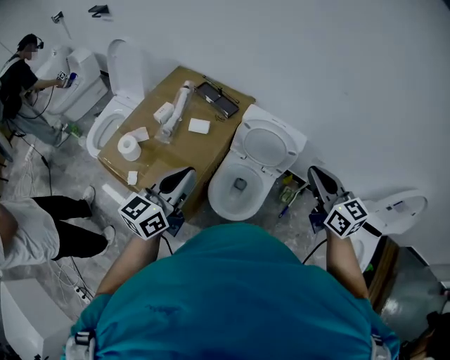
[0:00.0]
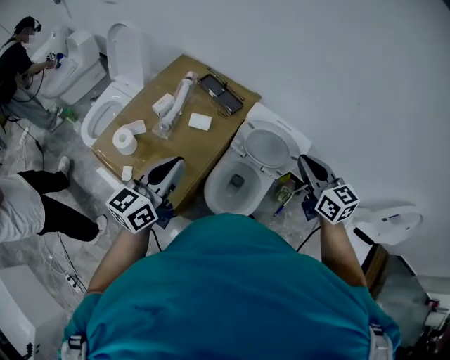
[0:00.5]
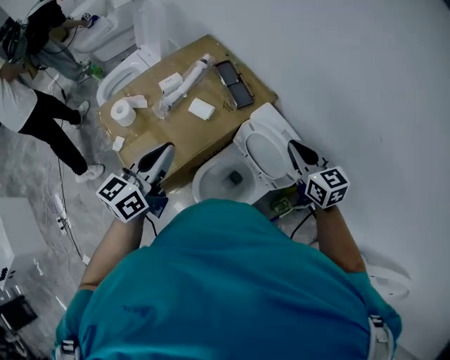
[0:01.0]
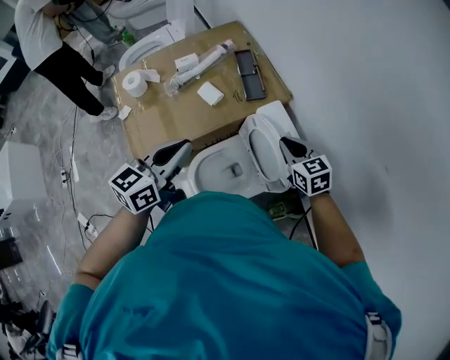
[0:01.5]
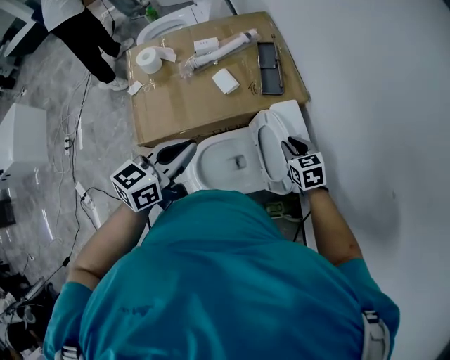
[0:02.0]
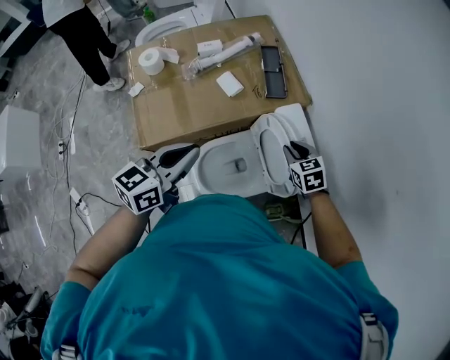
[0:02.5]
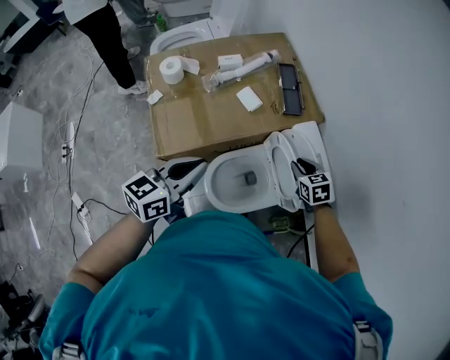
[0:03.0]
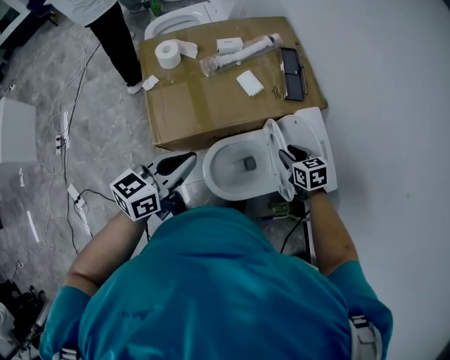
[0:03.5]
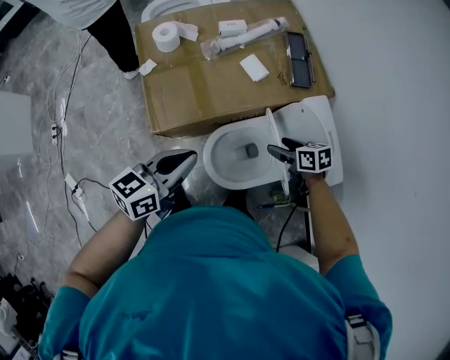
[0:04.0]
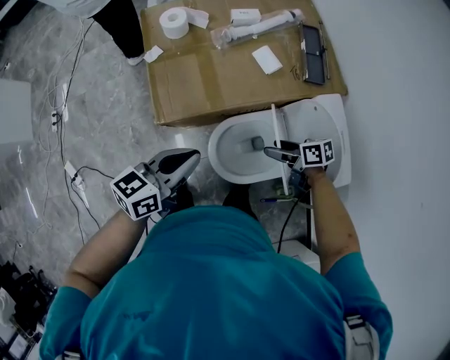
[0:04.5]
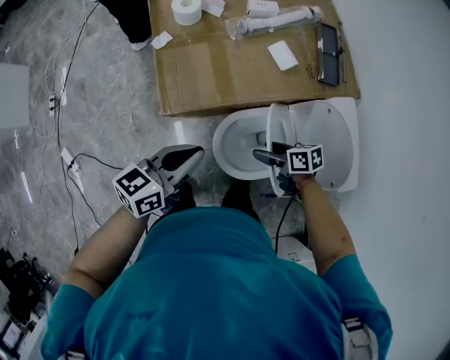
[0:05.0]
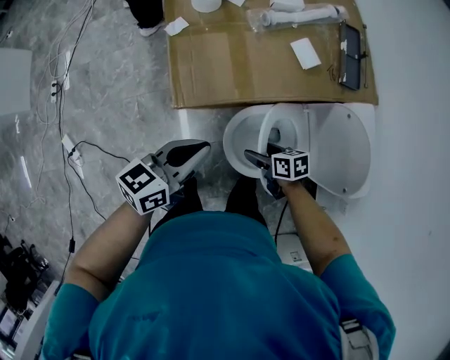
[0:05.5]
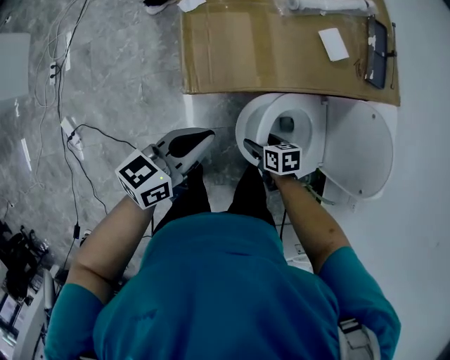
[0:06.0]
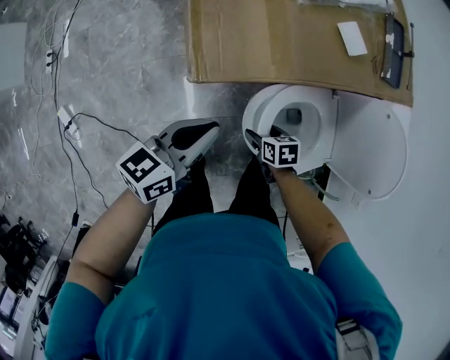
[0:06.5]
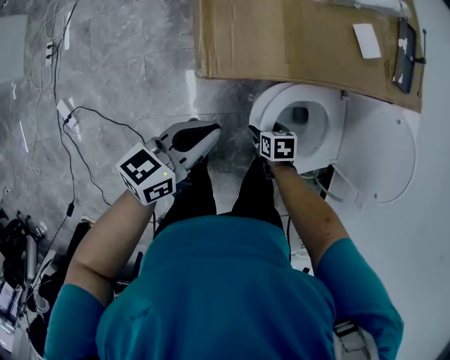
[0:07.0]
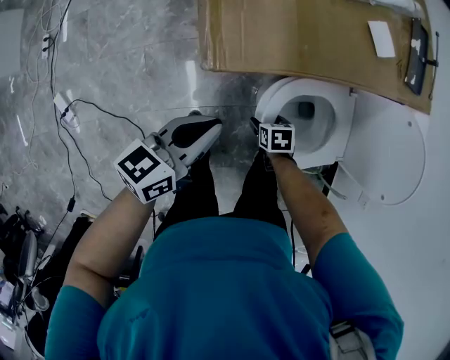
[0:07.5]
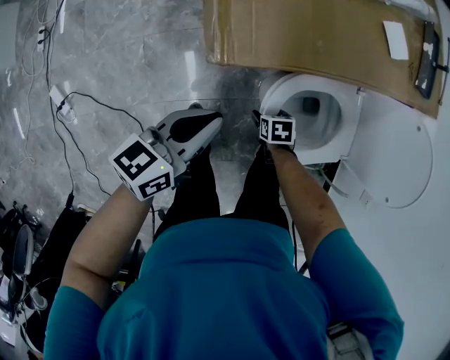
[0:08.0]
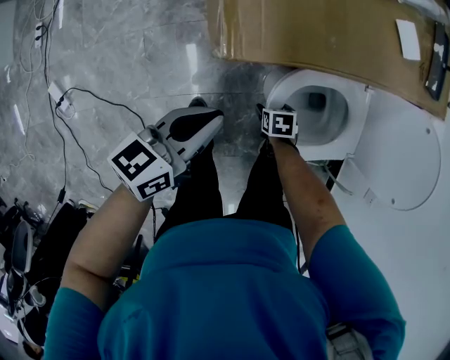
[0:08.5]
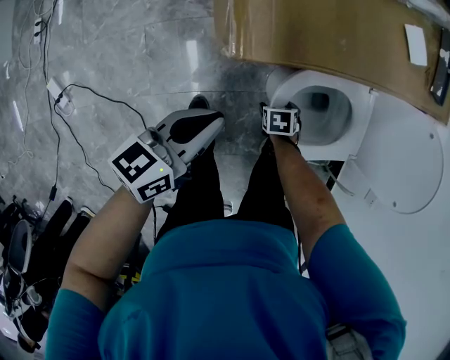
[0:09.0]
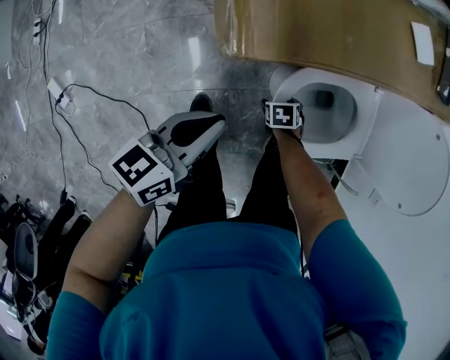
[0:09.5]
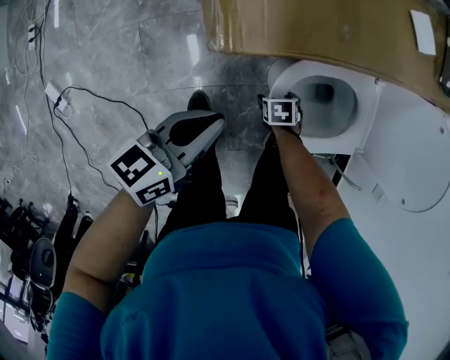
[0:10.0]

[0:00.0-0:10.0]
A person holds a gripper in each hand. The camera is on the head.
0:00.0 to 0:02.0: The right gripper changes place by approximately 50 cm, and tips its fingers downward by about 40 degrees. Meanwhile the left gripper shifts by some 25 cm, and rotates some 40 degrees.
0:02.0 to 0:04.0: Both grippers travel together to the left and downward, roughly 15 cm. The right gripper rotates approximately 30 degrees, and opens its fingers.
0:04.0 to 0:06.0: The left gripper is displaced downward by approximately 15 cm; the right gripper moves some 30 cm.
0:06.0 to 0:08.0: The right gripper is displaced downward by approximately 15 cm, and turns by some 20 degrees; the left gripper goes about 10 cm downward.
0:08.0 to 0:10.0: The grippers both shift downward by about 5 cm.

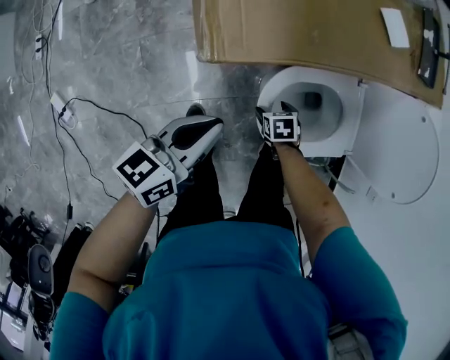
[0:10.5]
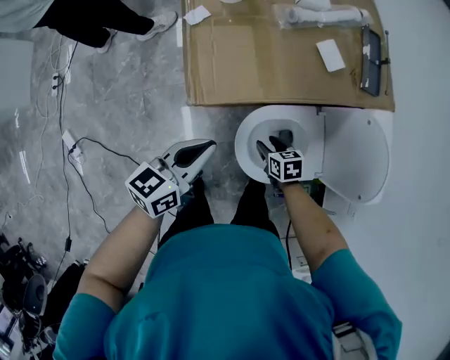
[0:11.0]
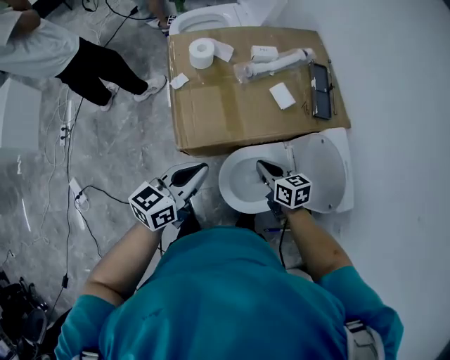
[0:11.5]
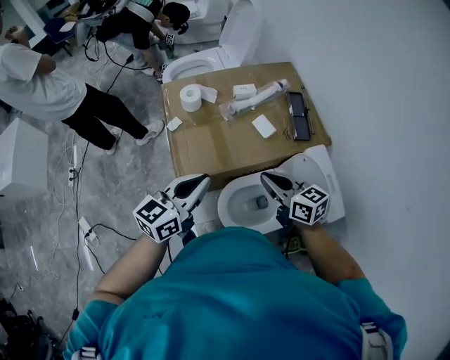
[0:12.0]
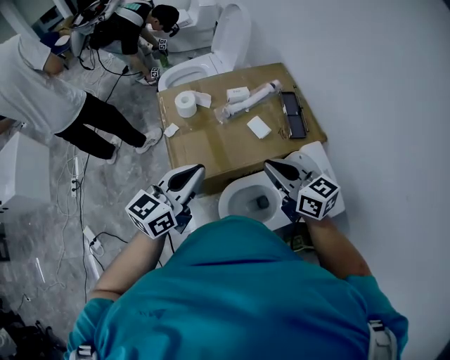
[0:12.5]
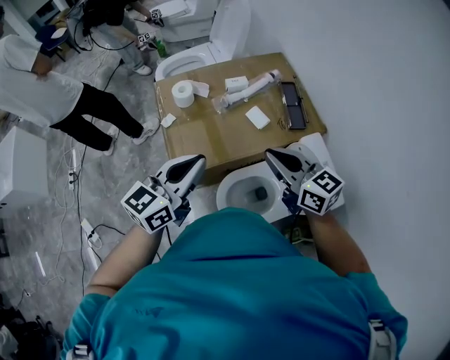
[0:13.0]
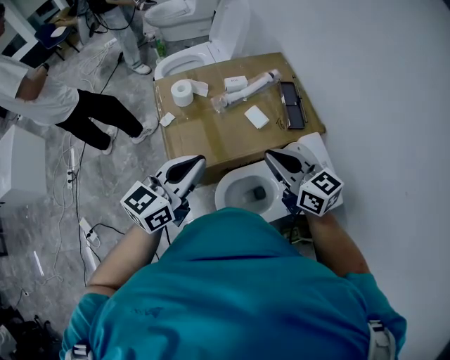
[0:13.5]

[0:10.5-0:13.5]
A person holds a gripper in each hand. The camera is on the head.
0:10.5 to 0:12.0: The right gripper is displaced upward by roughly 60 cm, points its fingers about 60 degrees further upward, and closes its fingers. Meanwhile the left gripper travels upward by about 35 cm, and turns by approximately 30 degrees.
0:12.0 to 0:13.5: The left gripper shifts about 5 cm upward, while the right gripper is displaced upward by some 10 cm.

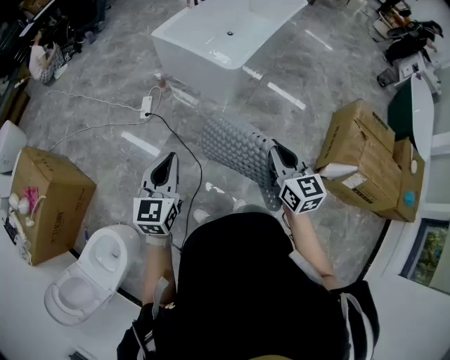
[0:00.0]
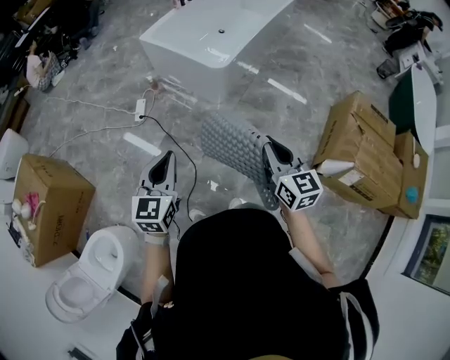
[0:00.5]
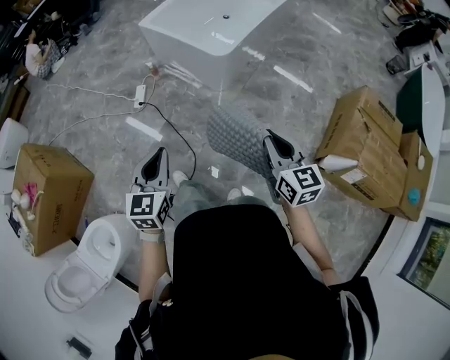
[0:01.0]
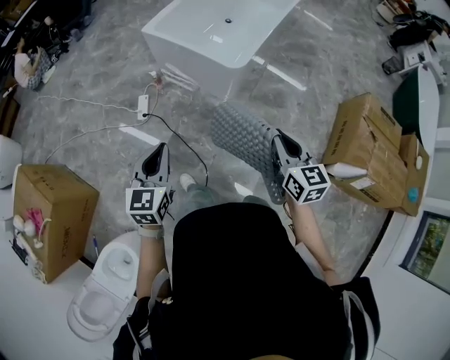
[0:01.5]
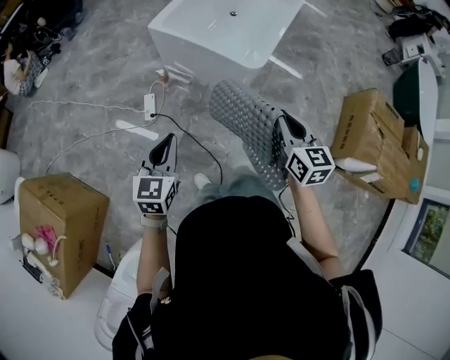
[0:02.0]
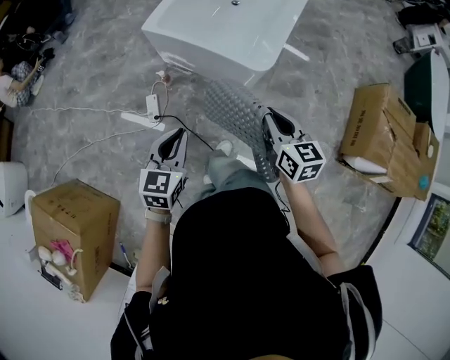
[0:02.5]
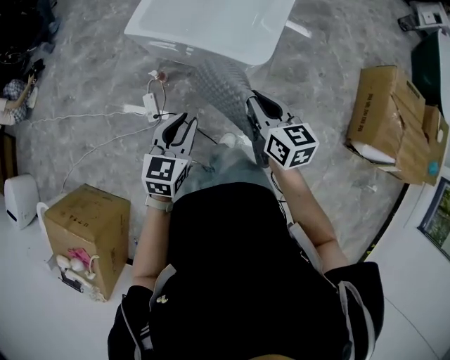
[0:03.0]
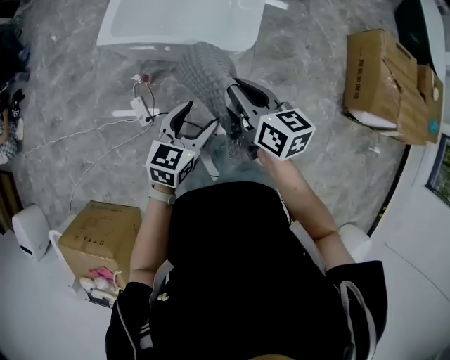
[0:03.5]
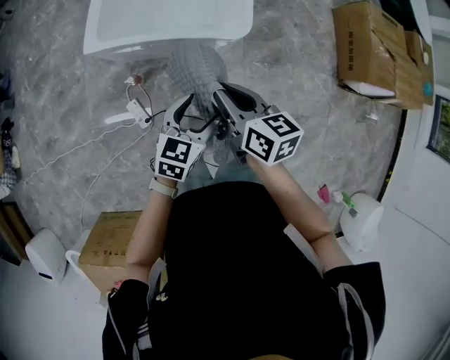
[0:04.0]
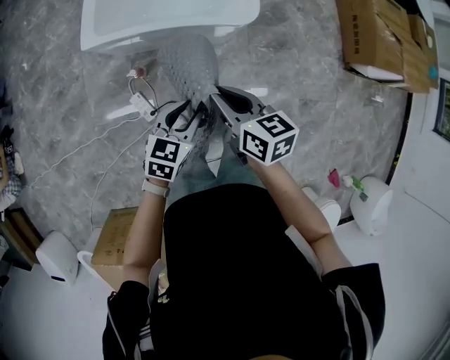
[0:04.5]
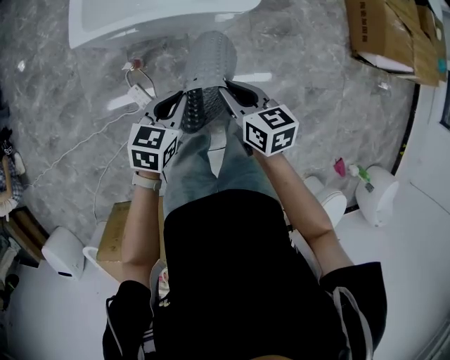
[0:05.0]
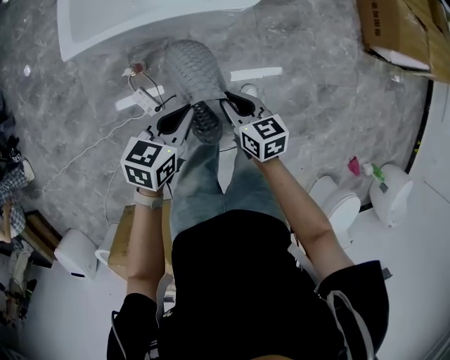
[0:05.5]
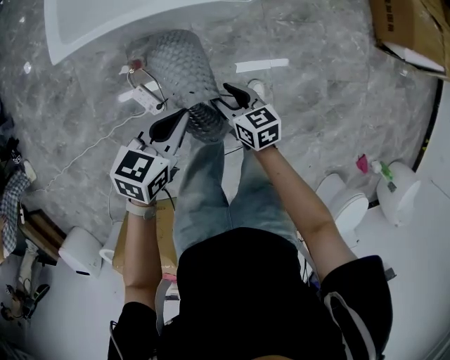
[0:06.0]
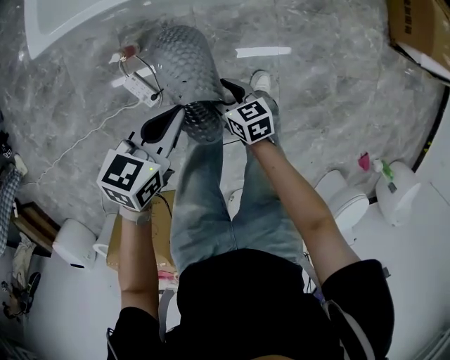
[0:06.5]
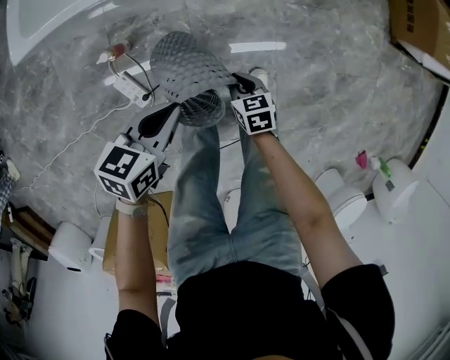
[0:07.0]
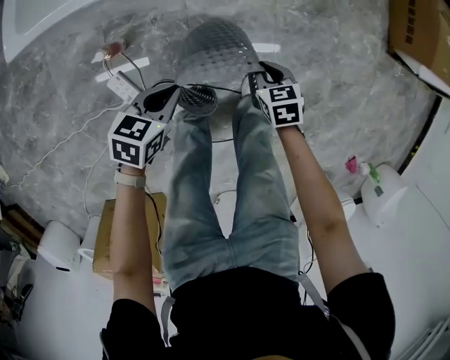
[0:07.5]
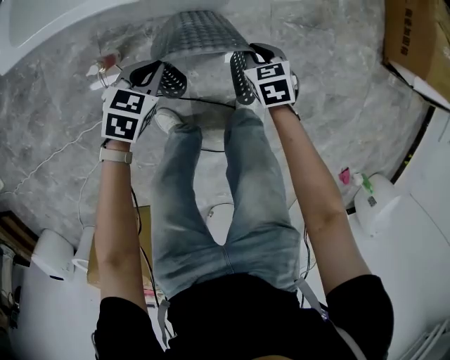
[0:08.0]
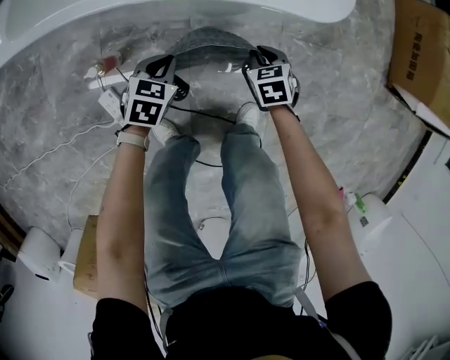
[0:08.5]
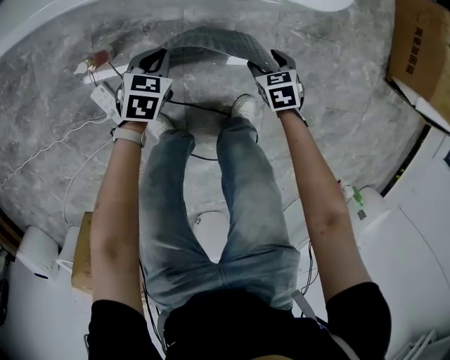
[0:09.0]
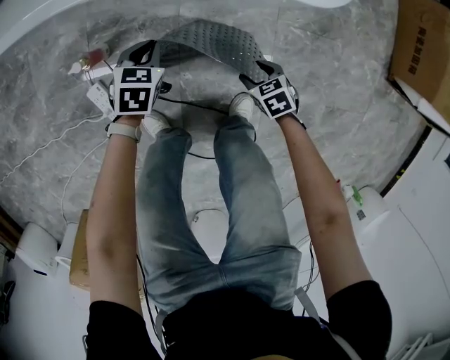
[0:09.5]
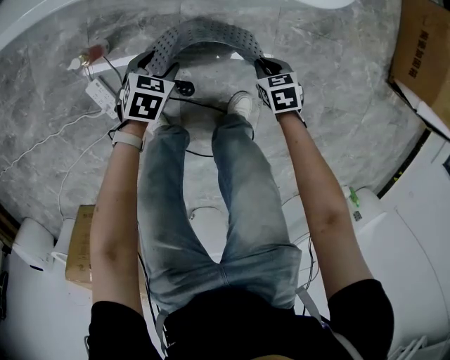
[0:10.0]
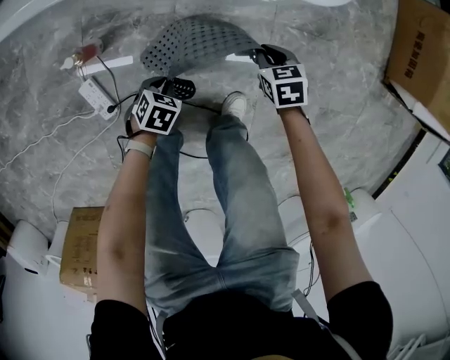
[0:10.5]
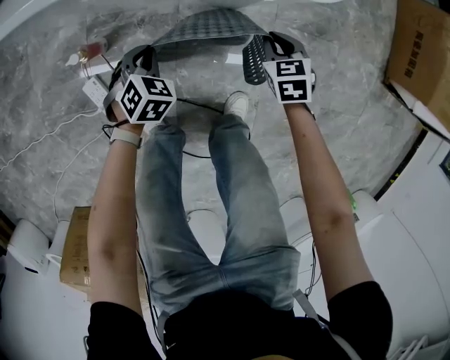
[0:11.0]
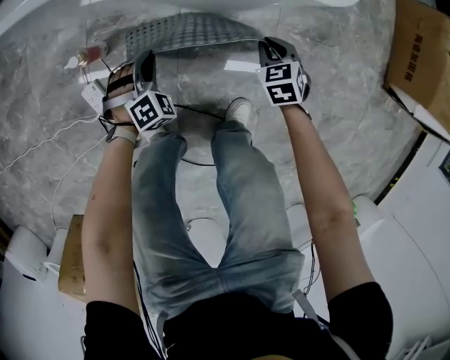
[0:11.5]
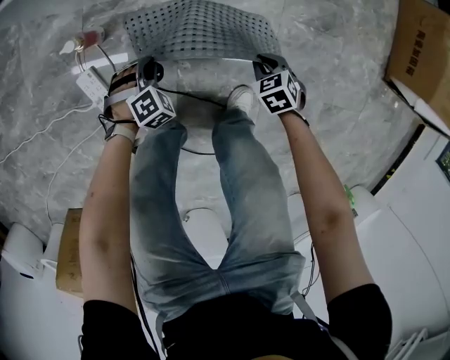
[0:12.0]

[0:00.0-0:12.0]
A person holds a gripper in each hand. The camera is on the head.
0:00.0 to 0:02.0: The two grippers go some 30 cm forward and to the left.
0:02.0 to 0:04.0: The left gripper ends up some 30 cm from where it was, turns by some 50 degrees, and opens its fingers, while the right gripper shifts by about 30 cm, and changes its angle by some 30 degrees.
0:04.0 to 0:06.0: The right gripper shifts about 35 cm downward, and opens up. Meanwhile the left gripper heads downward and to the left, covering about 15 cm, rotates roughly 20 degrees, and closes up.
0:06.0 to 0:08.0: The left gripper goes approximately 30 cm downward. Meanwhile the right gripper travels downward and forward by some 25 cm, turns by some 30 degrees, and closes up.
0:08.0 to 0:10.0: The two grippers go about 15 cm downward. The right gripper opens and closes again. The left gripper opens its fingers.
0:10.0 to 0:12.0: The right gripper travels upward and back again, about 10 cm each way, and turns by some 20 degrees, while the left gripper moves up and down over about 10 cm, changing direction 2 times, rotates around the line of its fingers by some 40 degrees, clockwise from behind, and closes.

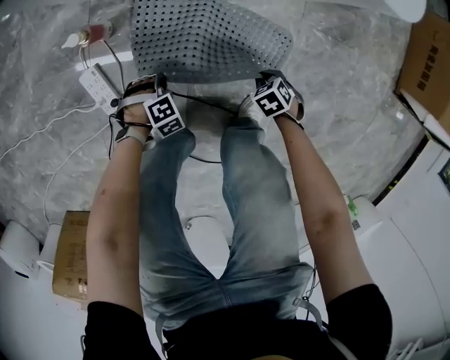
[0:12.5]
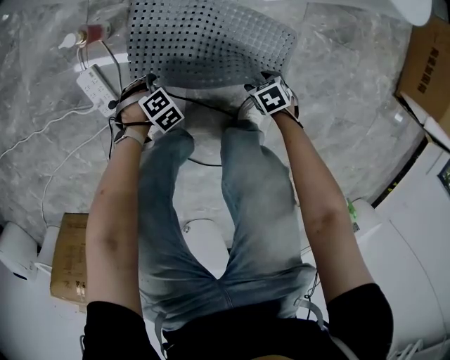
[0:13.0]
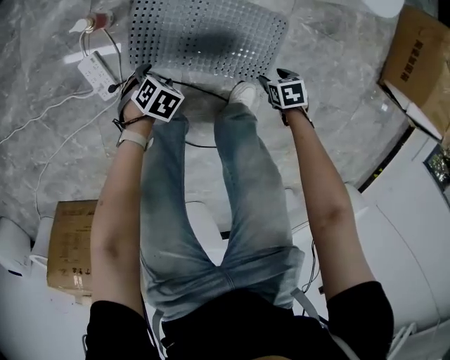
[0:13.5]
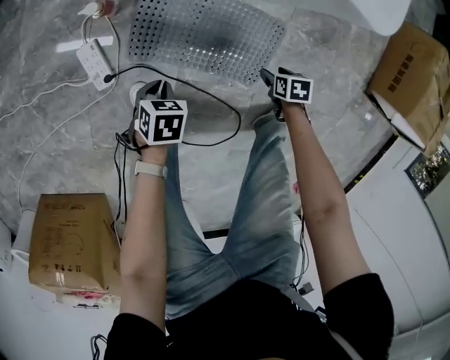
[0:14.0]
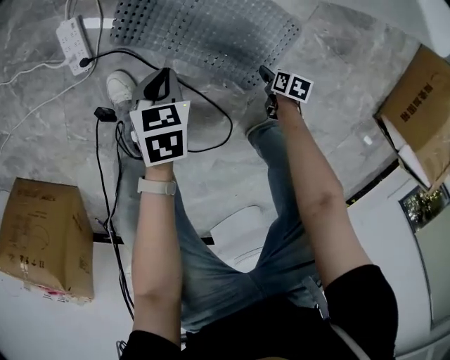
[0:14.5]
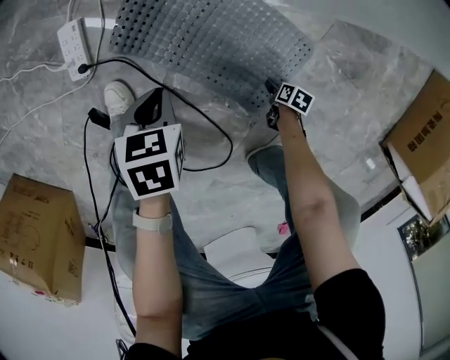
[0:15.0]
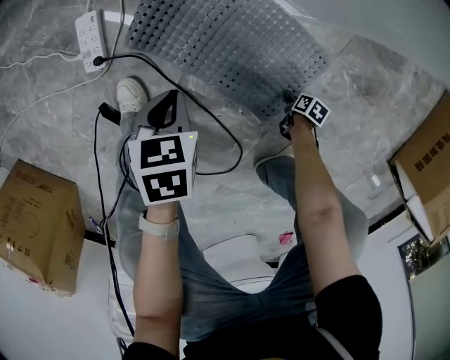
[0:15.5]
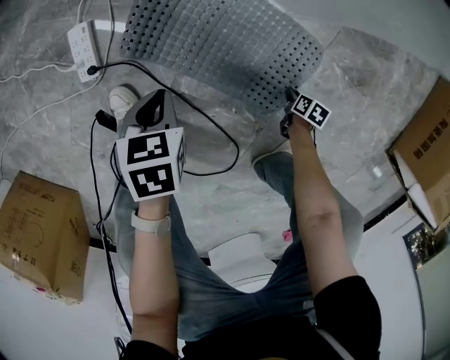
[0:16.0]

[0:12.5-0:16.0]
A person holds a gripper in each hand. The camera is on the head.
0:12.5 to 0:14.5: The left gripper moves upward, about 15 cm, twists some 90 degrees counterclockwise, seen from behind, and opens, then closes again. Meanwhile the right gripper ends up about 15 cm from where it was, rolls clockwise, seen from behind, by approximately 40 degrees, and opens its fingers.
0:14.5 to 0:16.0: The right gripper is displaced downward by approximately 5 cm, and closes up.
